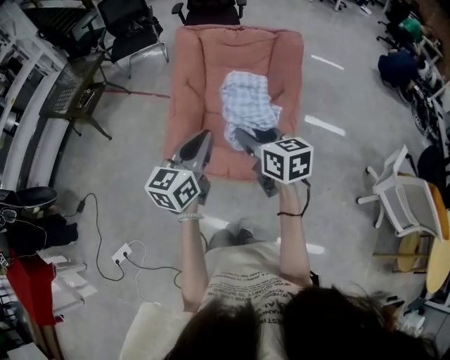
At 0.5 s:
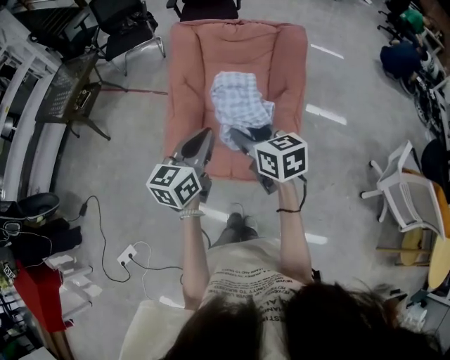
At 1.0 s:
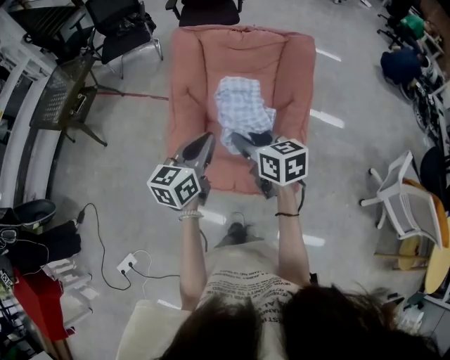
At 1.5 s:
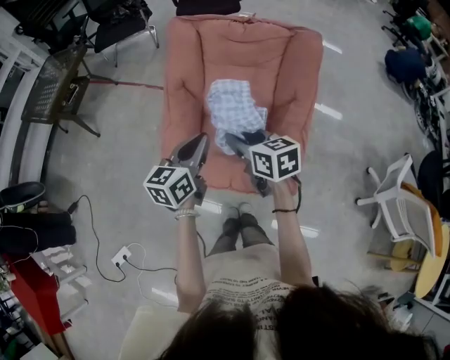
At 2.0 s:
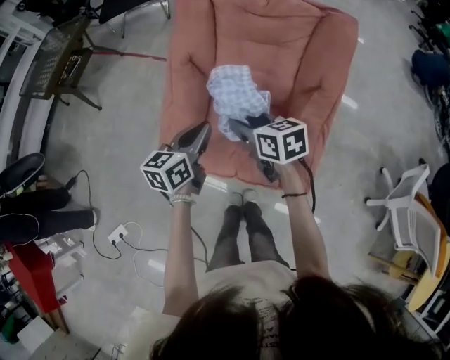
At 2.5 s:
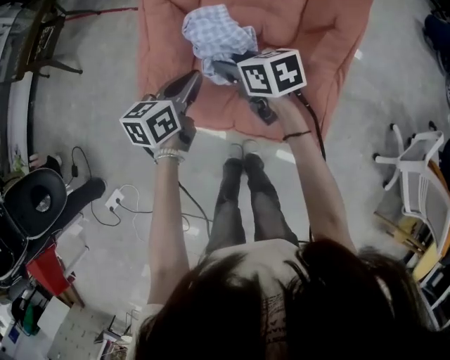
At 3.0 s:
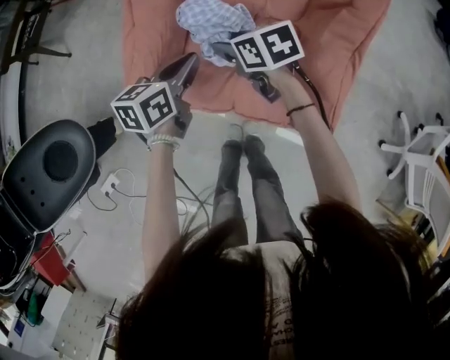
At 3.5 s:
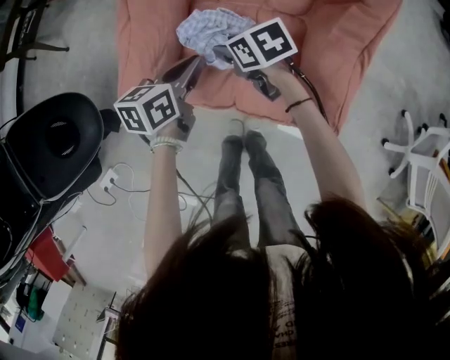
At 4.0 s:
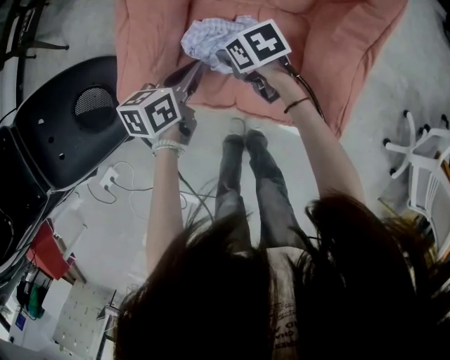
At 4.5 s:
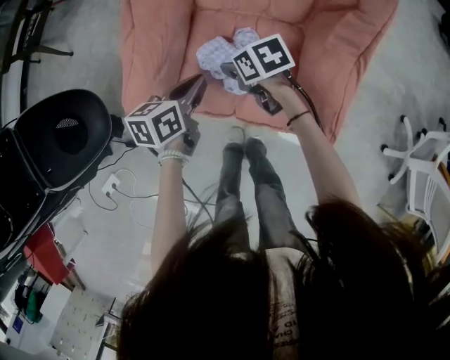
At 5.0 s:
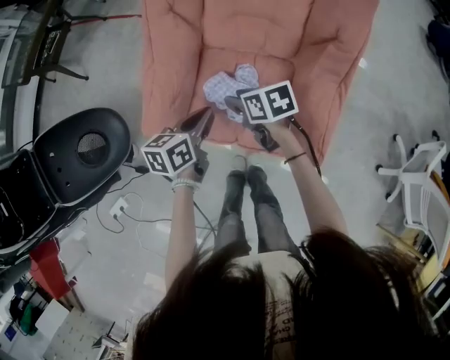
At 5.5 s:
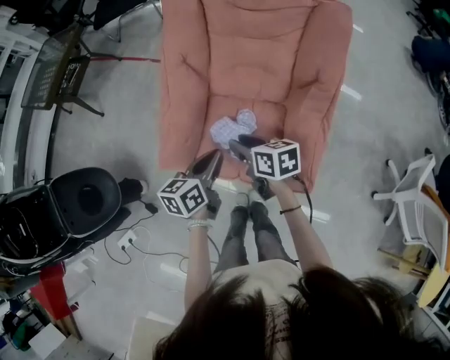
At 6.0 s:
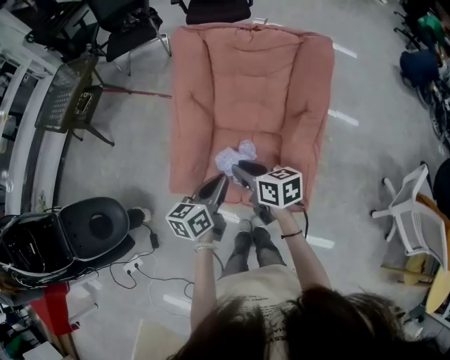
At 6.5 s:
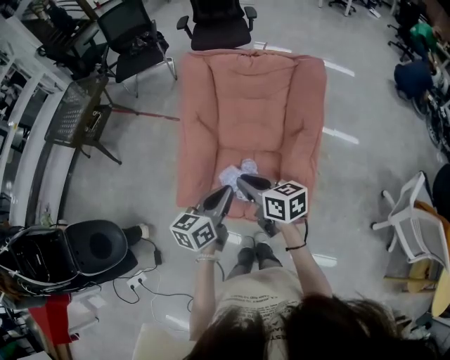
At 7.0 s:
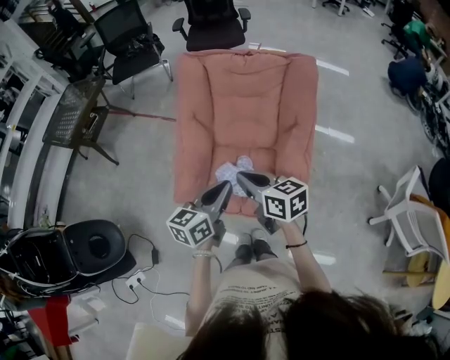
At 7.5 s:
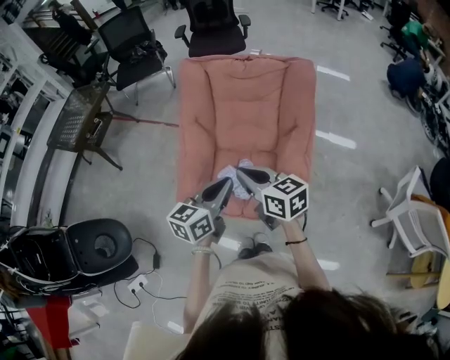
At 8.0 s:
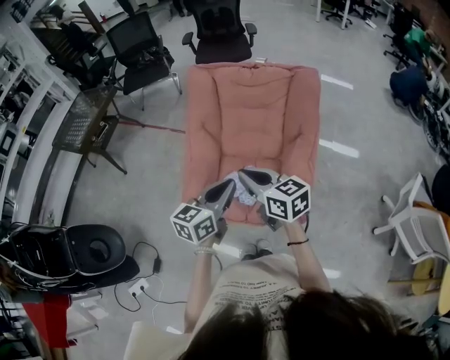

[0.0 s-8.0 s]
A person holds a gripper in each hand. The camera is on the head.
0.0 to 2.0 s: Both grippers travel together forward and downward, some 30 cm. The left gripper changes its angle by about 20 degrees.
2.0 to 4.0 s: The grippers both shift downward by about 25 cm. The right gripper turns by roughly 30 degrees.
4.0 to 6.0 s: Both grippers move upward, approximately 25 cm. The right gripper swivels about 30 degrees.
6.0 to 8.0 s: Both grippers move upward and backward, approximately 15 cm. The right gripper rotates roughly 20 degrees, and closes.

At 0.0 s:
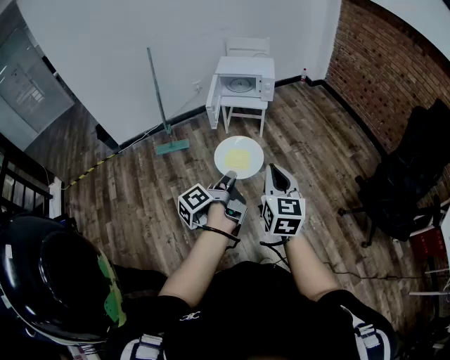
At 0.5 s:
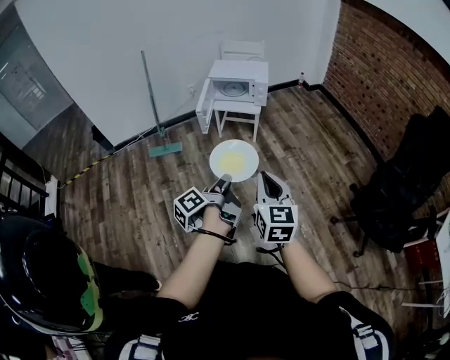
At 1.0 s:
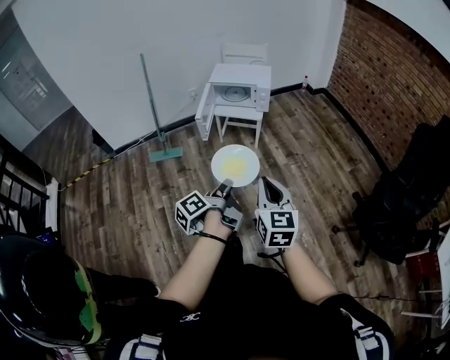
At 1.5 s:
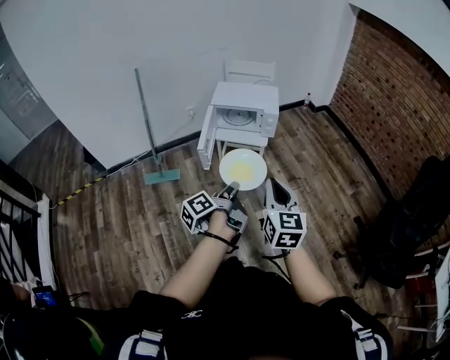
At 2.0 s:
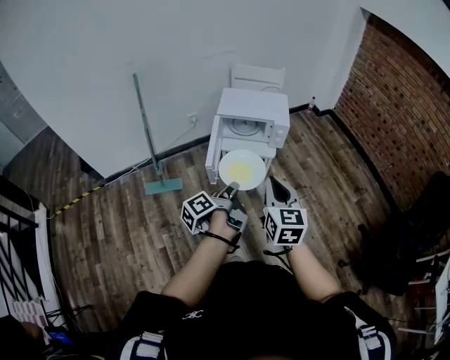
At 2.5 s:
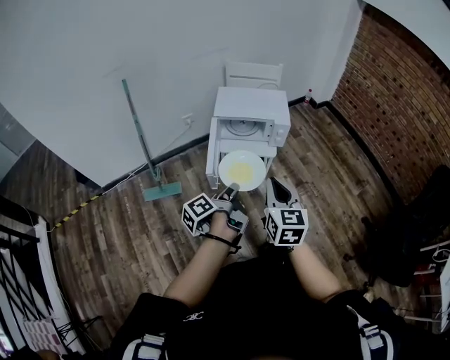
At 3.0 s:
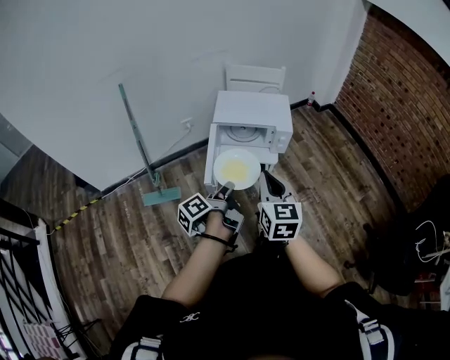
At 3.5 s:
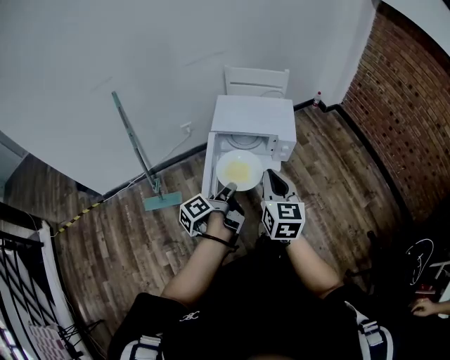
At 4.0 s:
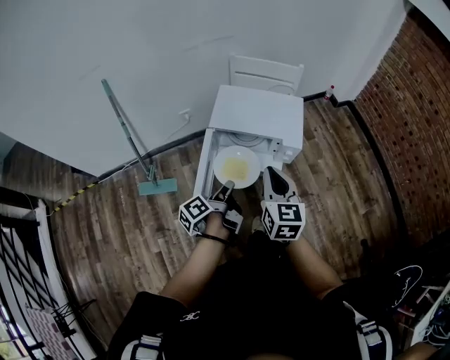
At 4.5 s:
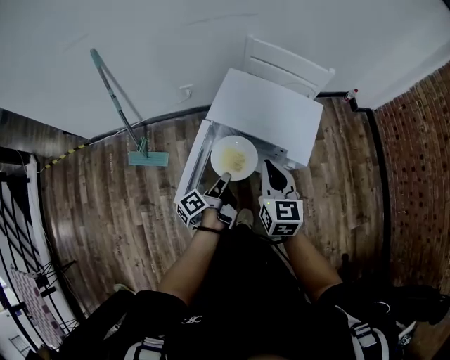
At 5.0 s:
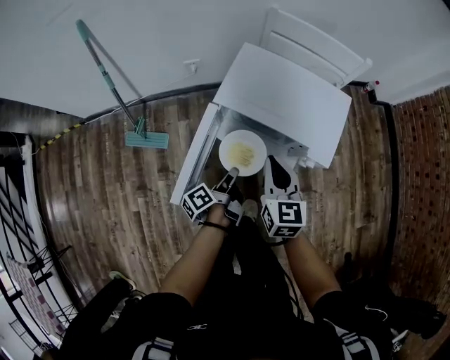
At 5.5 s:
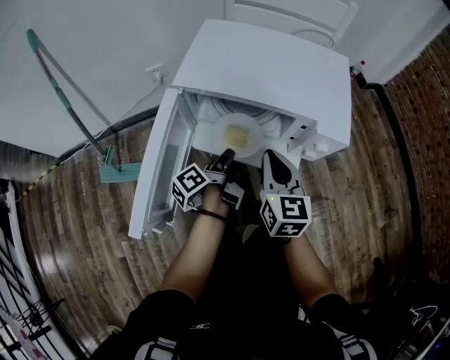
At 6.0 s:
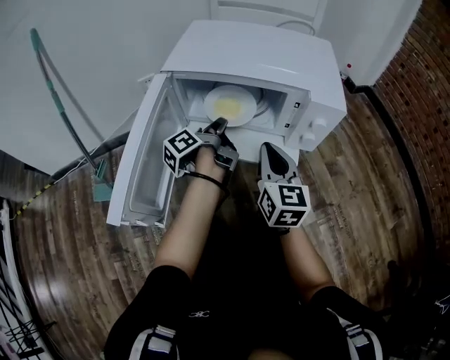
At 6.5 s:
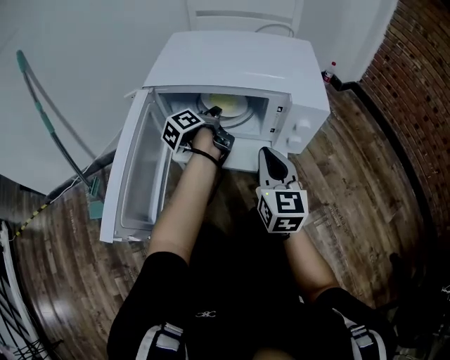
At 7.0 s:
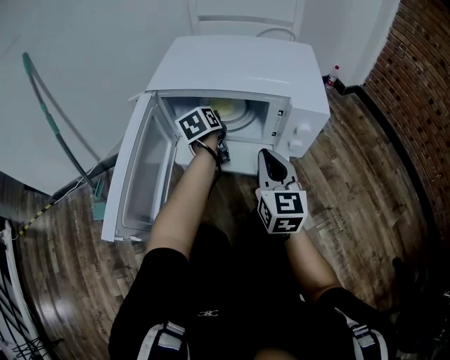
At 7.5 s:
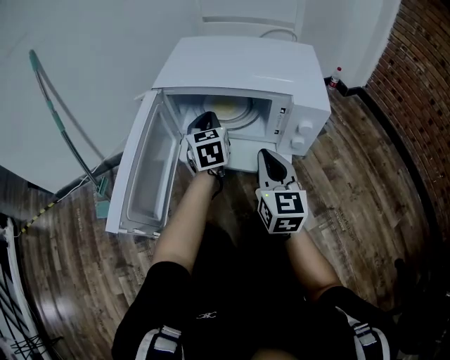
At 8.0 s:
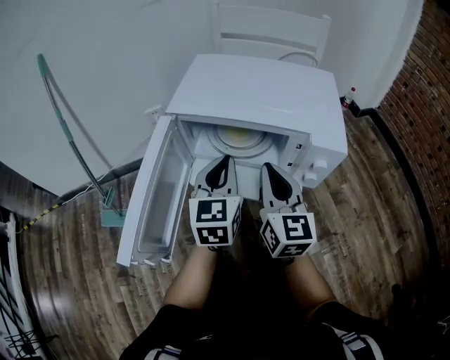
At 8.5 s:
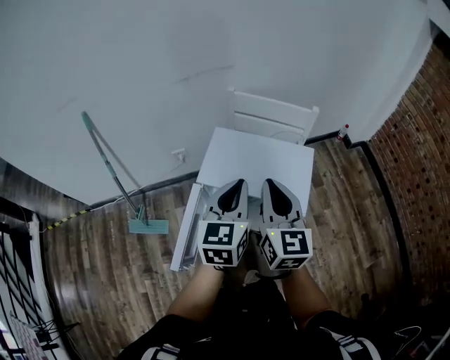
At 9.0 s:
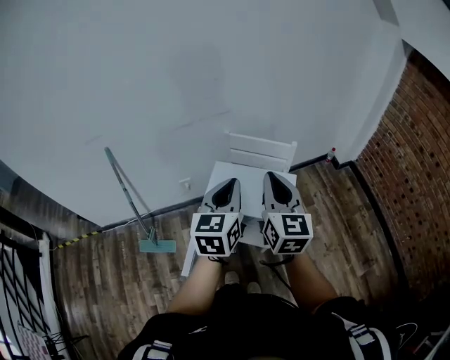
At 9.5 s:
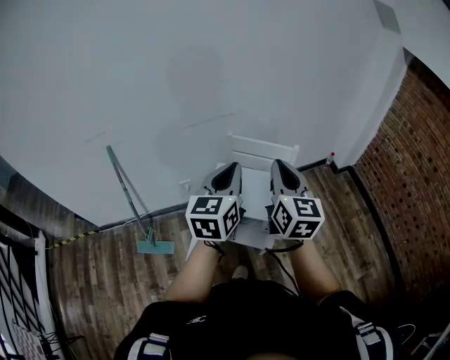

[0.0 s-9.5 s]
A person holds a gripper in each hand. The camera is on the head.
0.0 to 2.0 s: The right gripper shifts by about 40 cm.
2.0 to 4.0 s: The right gripper changes place by roughly 35 cm.
4.0 to 5.5 s: The right gripper travels downward by some 35 cm.
5.5 to 7.5 s: The right gripper changes place by approximately 5 cm.
7.5 to 9.5 s: The right gripper travels upward by roughly 60 cm.

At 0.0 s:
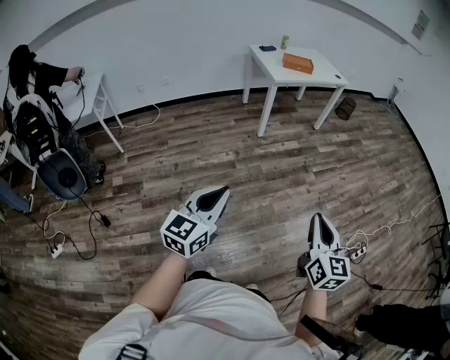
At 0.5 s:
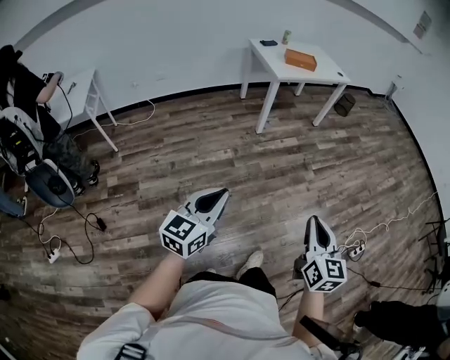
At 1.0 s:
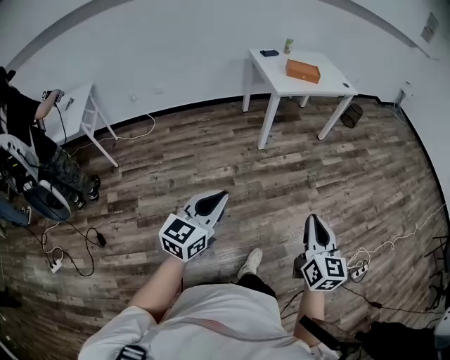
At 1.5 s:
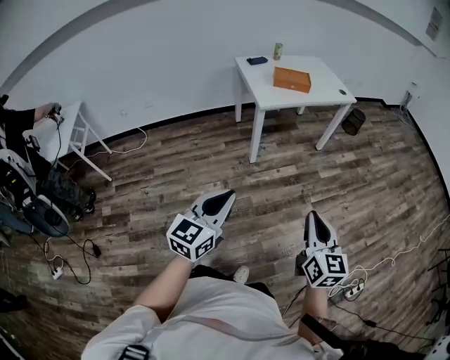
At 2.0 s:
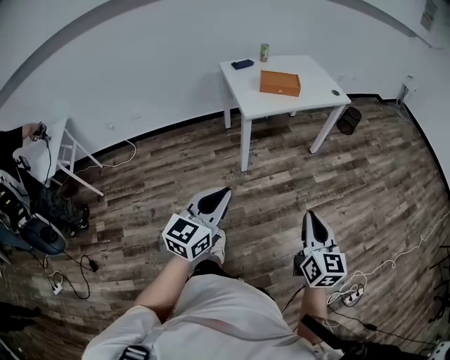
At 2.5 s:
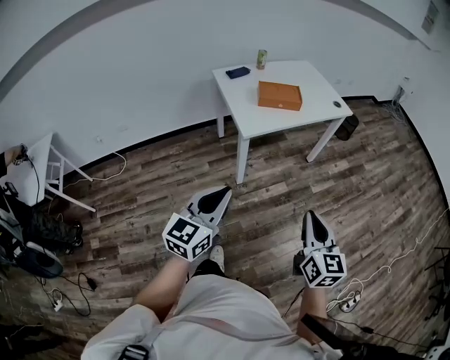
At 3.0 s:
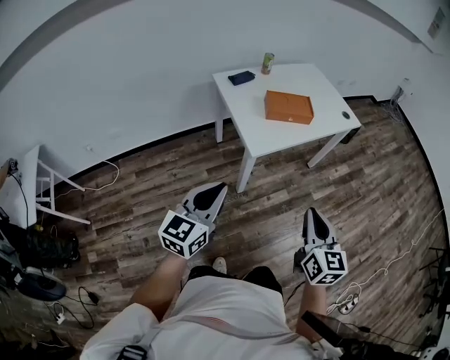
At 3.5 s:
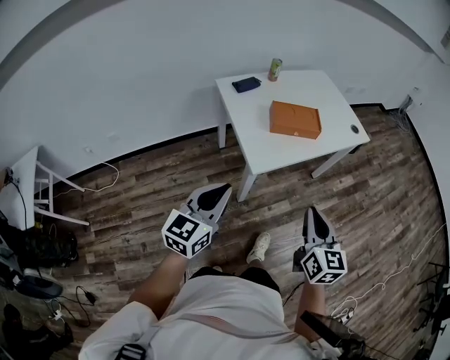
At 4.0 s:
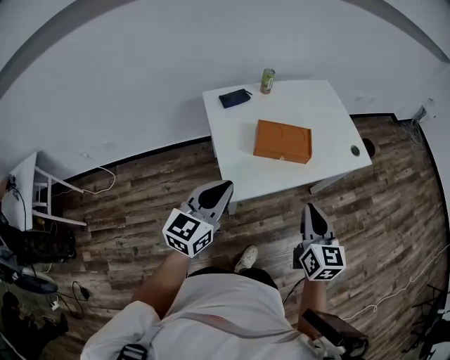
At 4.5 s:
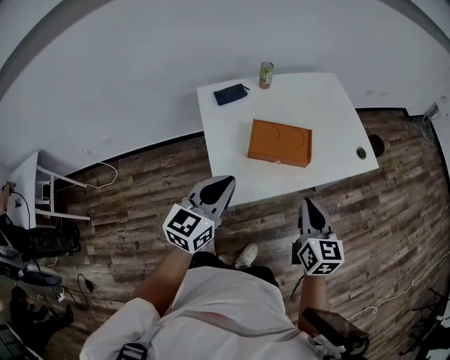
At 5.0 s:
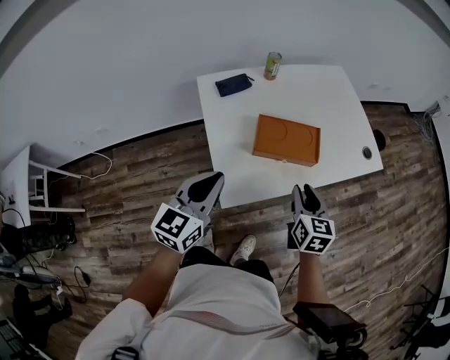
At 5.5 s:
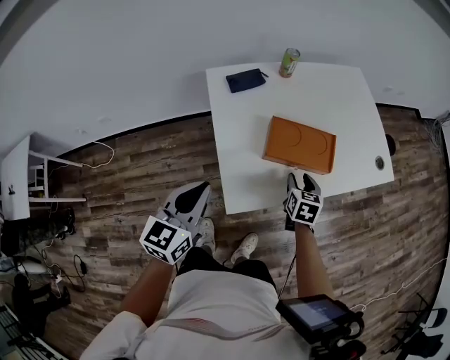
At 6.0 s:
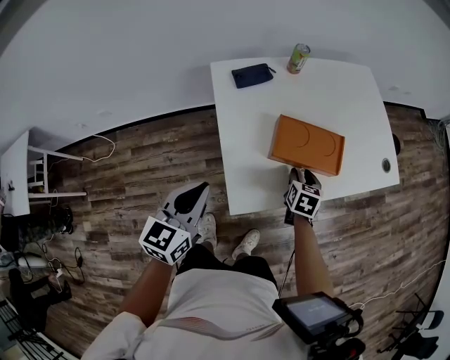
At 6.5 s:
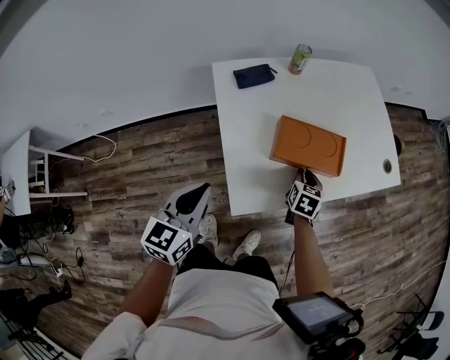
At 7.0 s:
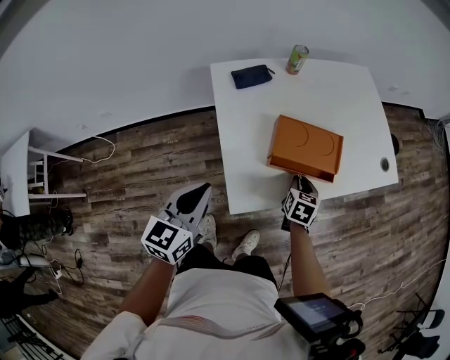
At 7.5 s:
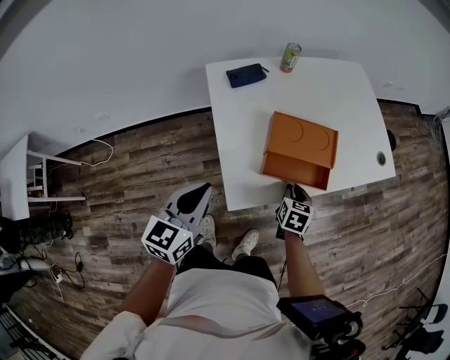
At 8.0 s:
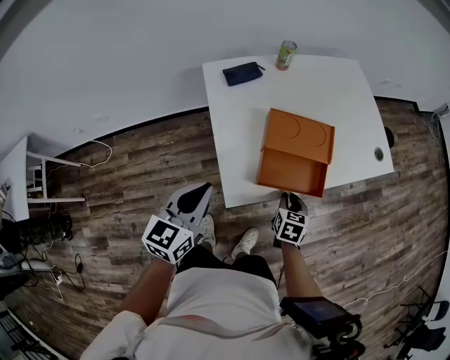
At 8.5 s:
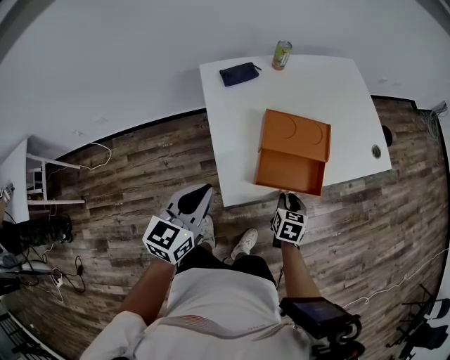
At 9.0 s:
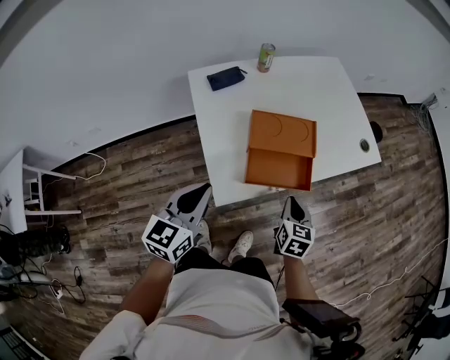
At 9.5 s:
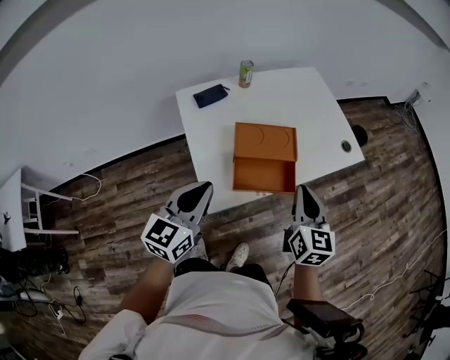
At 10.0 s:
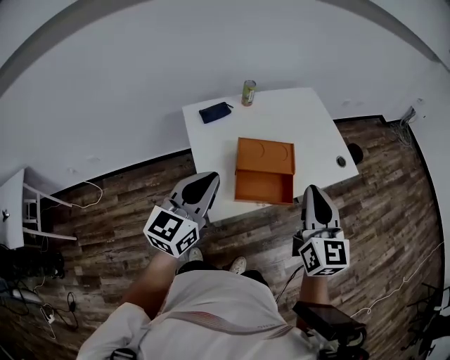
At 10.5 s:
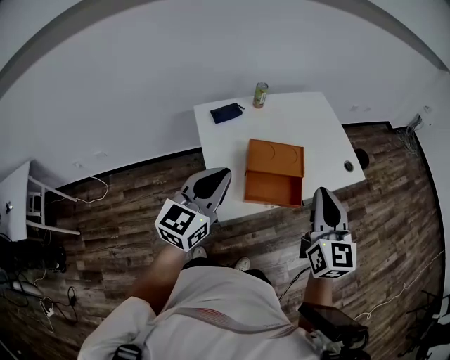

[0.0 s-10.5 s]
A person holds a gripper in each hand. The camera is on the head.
0.0 to 2.0 s: The pair of grippers is taken forward, about 50 cm.
2.0 to 4.0 s: The pair of grippers is taken forward, some 60 cm.
4.0 to 6.5 s: The right gripper moves downward and forward, roughly 35 cm, tips its fingers downward by about 30 degrees, and opens, then closes once more. The left gripper travels downward, to the left and forward by about 15 cm.
6.5 to 8.5 s: The left gripper changes place by approximately 5 cm; the right gripper moves backward, some 15 cm.
8.5 to 10.5 s: The left gripper heads upward, covering about 15 cm; the right gripper travels upward by about 40 cm, and tips its fingers upward by about 40 degrees.
